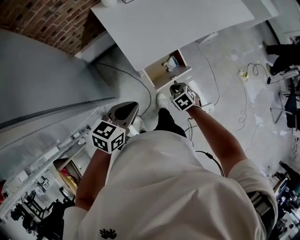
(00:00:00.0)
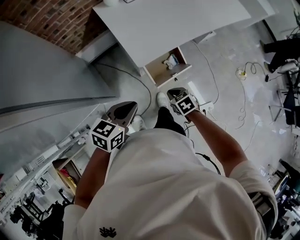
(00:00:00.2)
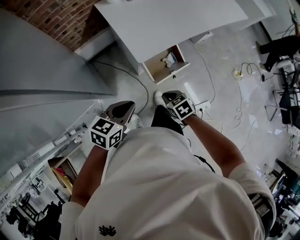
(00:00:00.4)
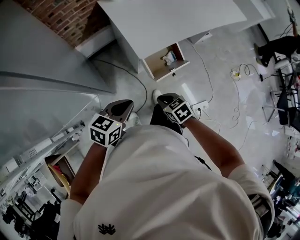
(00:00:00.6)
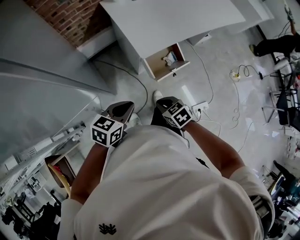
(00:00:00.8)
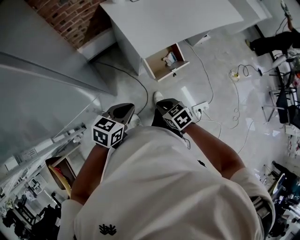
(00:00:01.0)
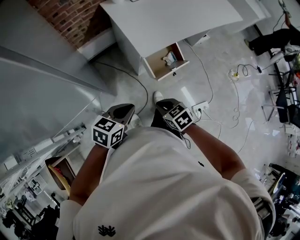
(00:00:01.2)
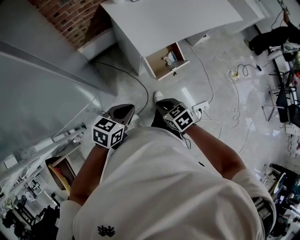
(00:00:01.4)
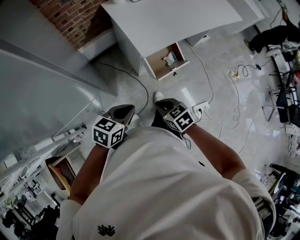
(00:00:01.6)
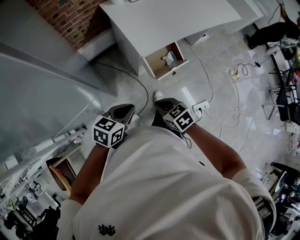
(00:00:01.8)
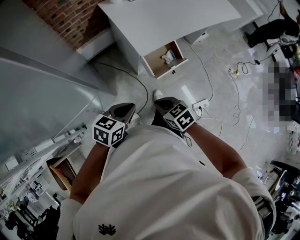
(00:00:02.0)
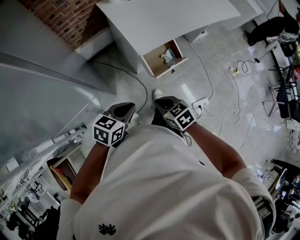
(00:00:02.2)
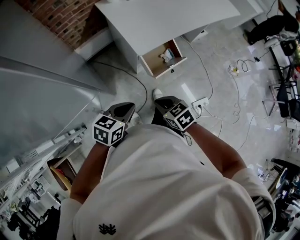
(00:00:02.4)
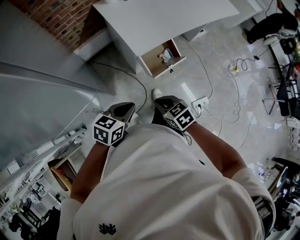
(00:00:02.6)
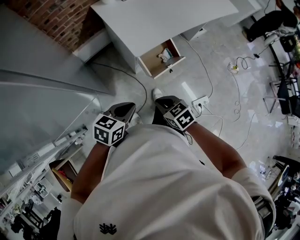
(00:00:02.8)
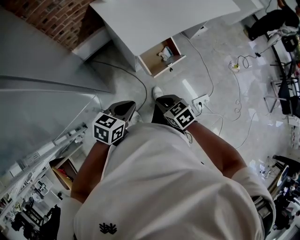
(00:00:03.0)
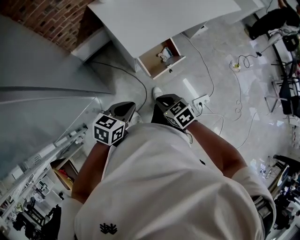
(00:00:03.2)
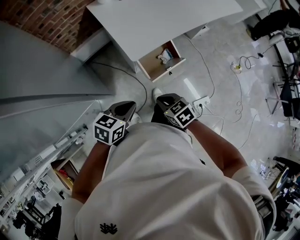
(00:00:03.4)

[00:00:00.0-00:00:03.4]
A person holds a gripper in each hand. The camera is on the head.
00:00:00.0 to 00:00:01.6: The right gripper goes about 30 cm backward, to the left and upward, while the left gripper is displaced backward and to the left by approximately 20 cm.
00:00:01.6 to 00:00:03.4: Both grippers move forward and to the right, some 10 cm.

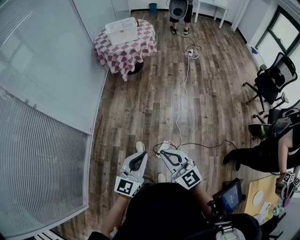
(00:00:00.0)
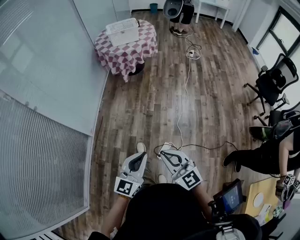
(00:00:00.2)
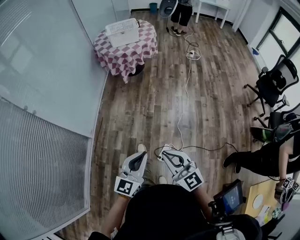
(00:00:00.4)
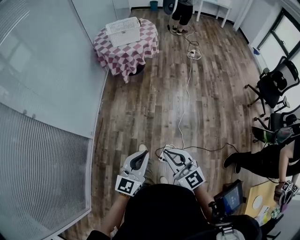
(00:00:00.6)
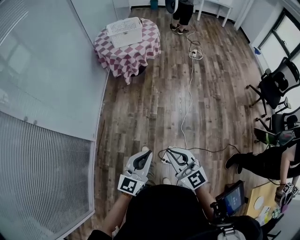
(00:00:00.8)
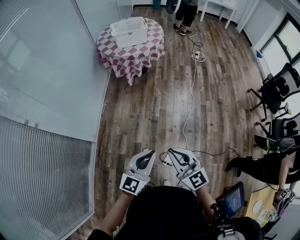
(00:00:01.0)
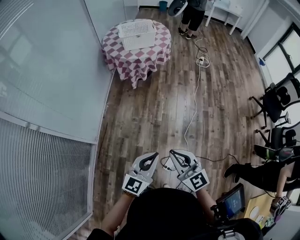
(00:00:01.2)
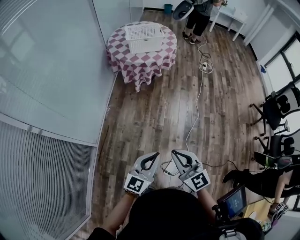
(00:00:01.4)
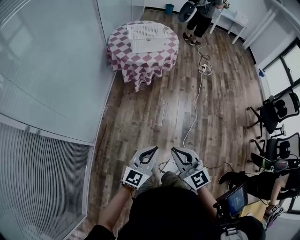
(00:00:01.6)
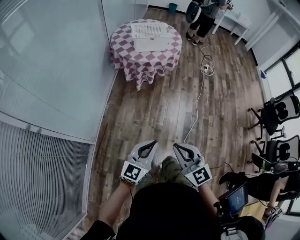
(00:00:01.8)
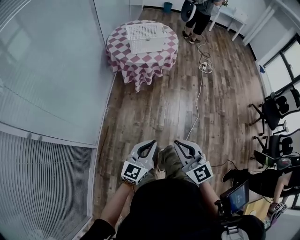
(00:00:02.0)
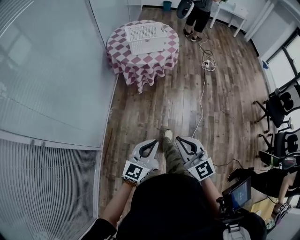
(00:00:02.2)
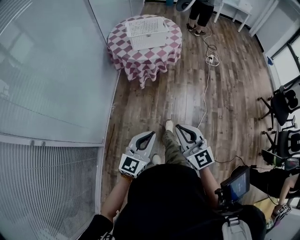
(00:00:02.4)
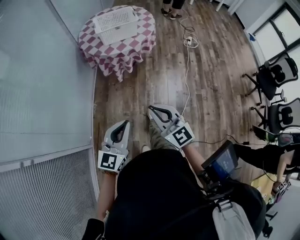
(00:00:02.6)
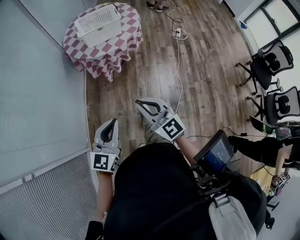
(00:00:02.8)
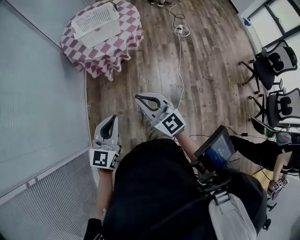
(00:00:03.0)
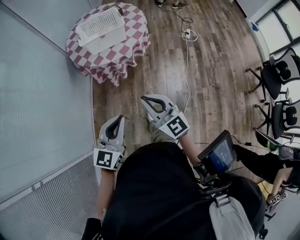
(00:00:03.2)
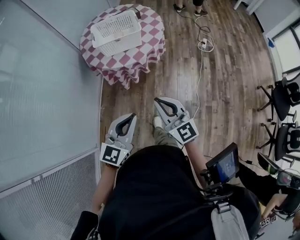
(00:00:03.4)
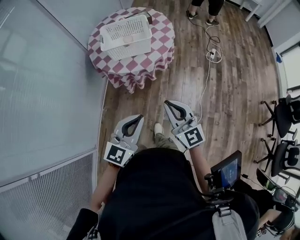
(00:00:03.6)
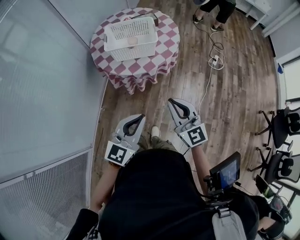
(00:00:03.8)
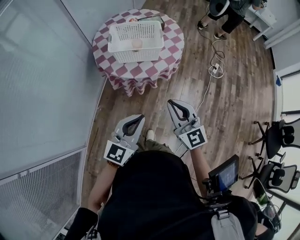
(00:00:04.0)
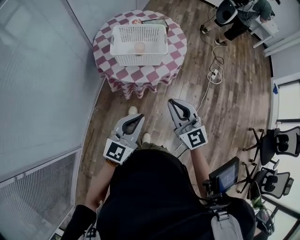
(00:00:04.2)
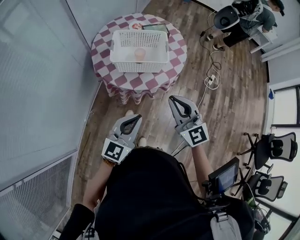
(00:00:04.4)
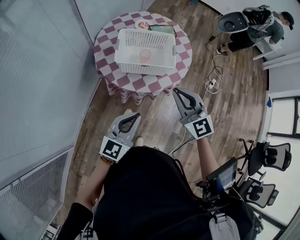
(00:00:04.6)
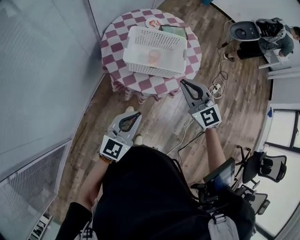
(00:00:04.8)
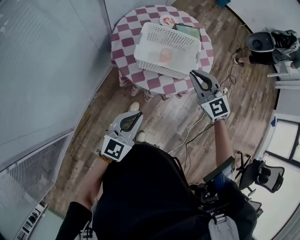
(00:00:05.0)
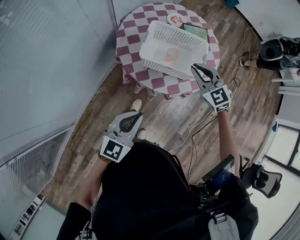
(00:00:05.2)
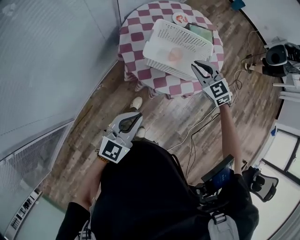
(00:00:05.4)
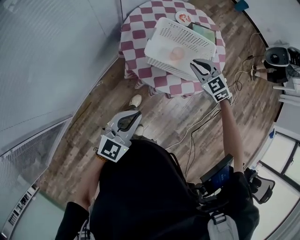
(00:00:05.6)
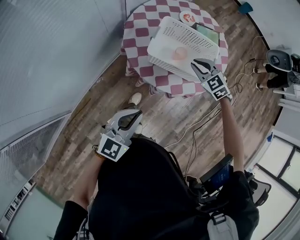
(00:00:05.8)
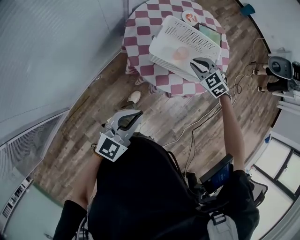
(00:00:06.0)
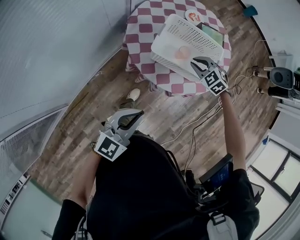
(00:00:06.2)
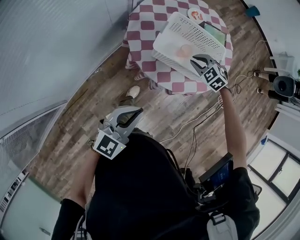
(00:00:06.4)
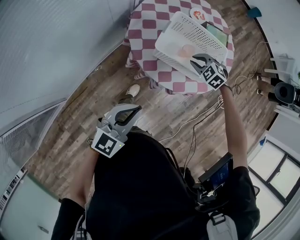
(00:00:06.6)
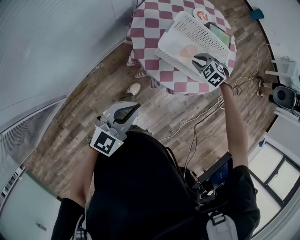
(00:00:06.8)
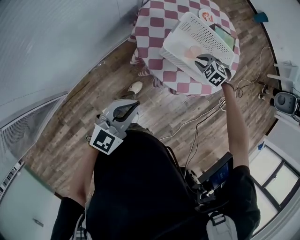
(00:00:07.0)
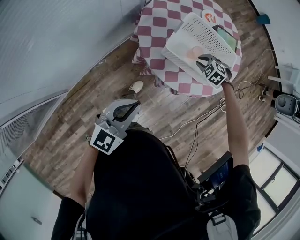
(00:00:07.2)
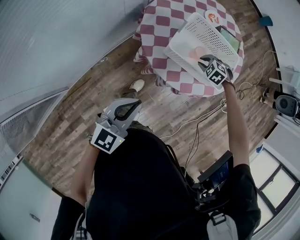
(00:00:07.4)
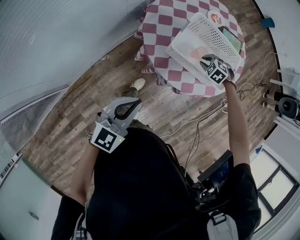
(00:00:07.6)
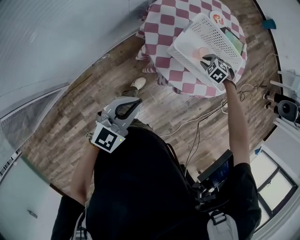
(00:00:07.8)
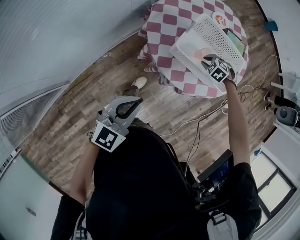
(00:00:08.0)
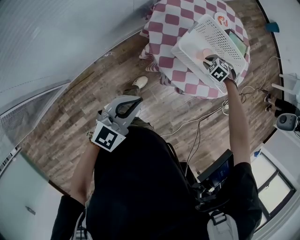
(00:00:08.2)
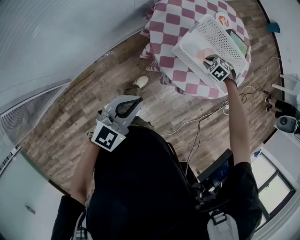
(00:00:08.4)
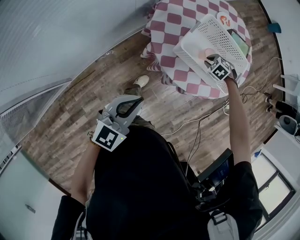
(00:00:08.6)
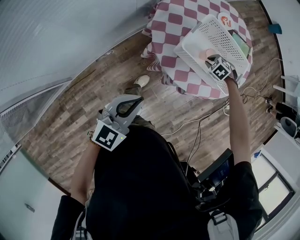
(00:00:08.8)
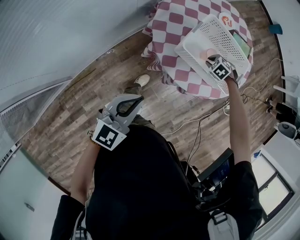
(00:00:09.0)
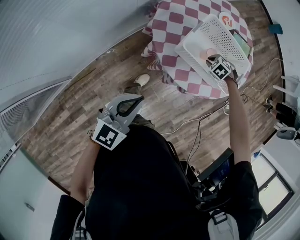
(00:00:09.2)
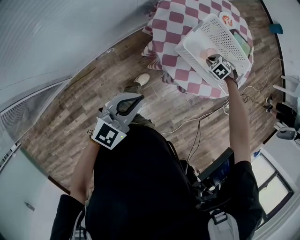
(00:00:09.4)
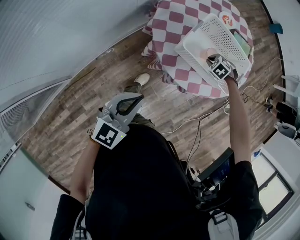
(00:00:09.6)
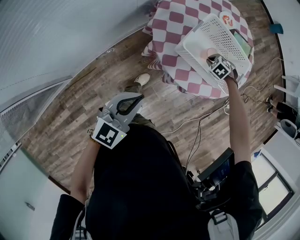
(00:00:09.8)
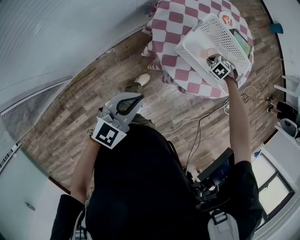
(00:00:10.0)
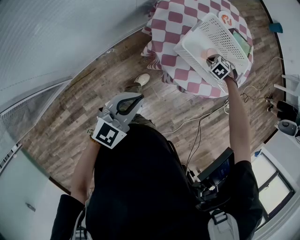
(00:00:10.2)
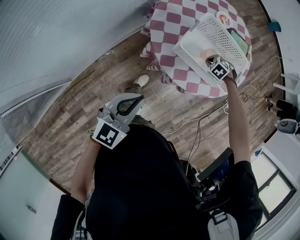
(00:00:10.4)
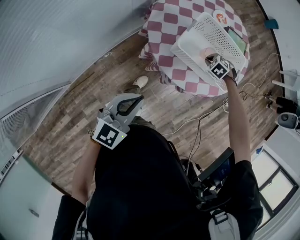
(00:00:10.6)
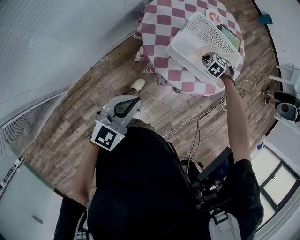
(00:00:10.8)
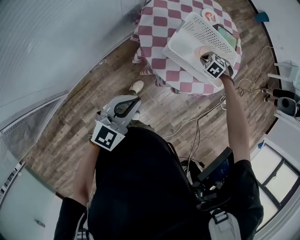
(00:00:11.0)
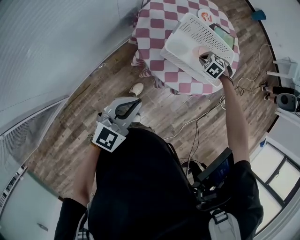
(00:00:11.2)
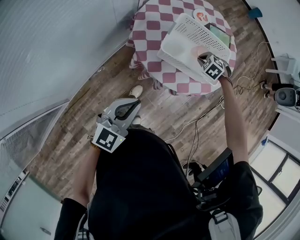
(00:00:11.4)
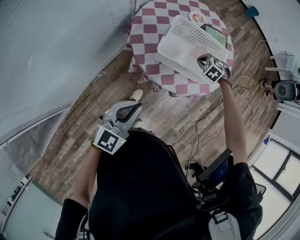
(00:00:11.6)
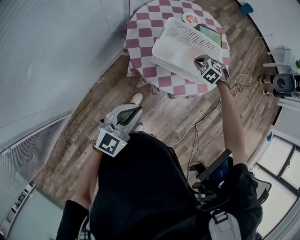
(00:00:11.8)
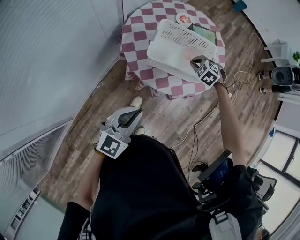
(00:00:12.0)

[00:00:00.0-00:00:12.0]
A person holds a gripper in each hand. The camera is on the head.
00:00:00.0 to 00:00:01.6: Both grippers travel together forward and to the left, about 35 cm.
00:00:01.6 to 00:00:03.0: Both grippers move forward, some 30 cm.
00:00:03.0 to 00:00:04.4: The two grippers go about 35 cm forward.
00:00:04.4 to 00:00:06.0: The left gripper heads forward and to the left, covering about 15 cm. Meanwhile the right gripper goes some 35 cm forward and downward, and angles its fingers downward, by some 40 degrees.
00:00:06.0 to 00:00:07.6: The left gripper ends up some 5 cm from where it was, while the right gripper travels downward by some 15 cm, and turns by about 30 degrees.
00:00:07.6 to 00:00:09.0: The grippers move only a little.
00:00:09.0 to 00:00:10.4: The two grippers keep their place.
00:00:10.4 to 00:00:12.0: The left gripper shifts by about 5 cm; the right gripper goes some 15 cm upward.

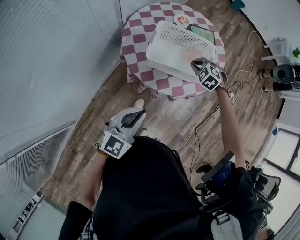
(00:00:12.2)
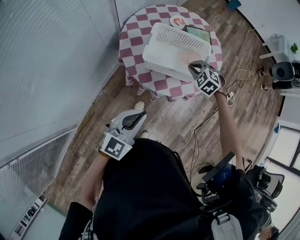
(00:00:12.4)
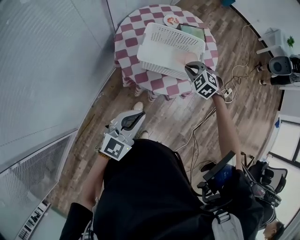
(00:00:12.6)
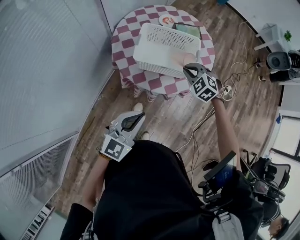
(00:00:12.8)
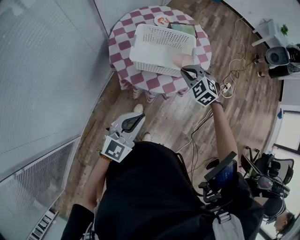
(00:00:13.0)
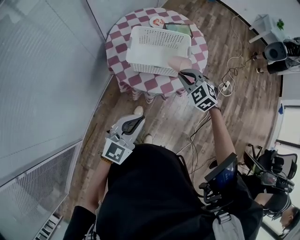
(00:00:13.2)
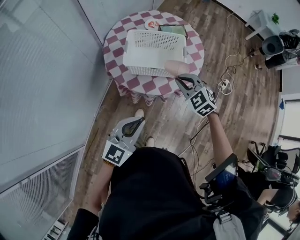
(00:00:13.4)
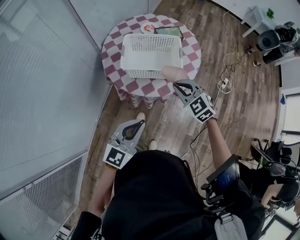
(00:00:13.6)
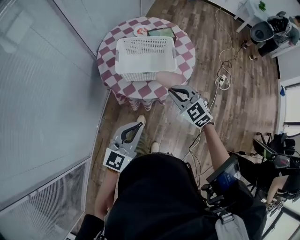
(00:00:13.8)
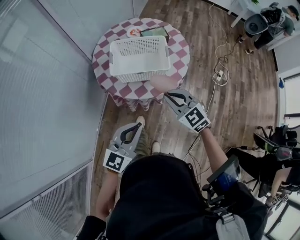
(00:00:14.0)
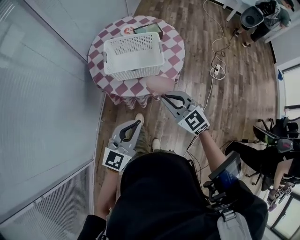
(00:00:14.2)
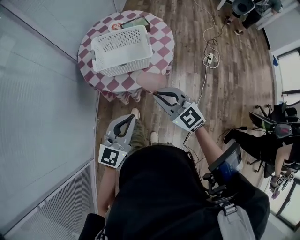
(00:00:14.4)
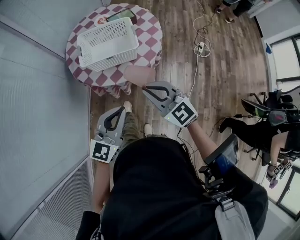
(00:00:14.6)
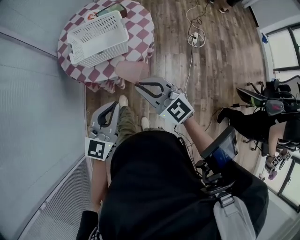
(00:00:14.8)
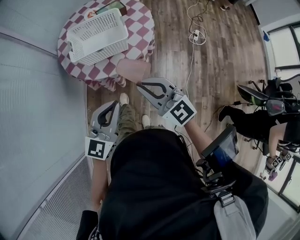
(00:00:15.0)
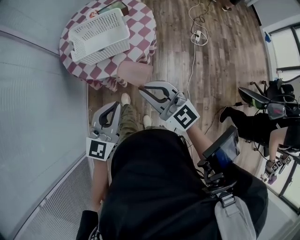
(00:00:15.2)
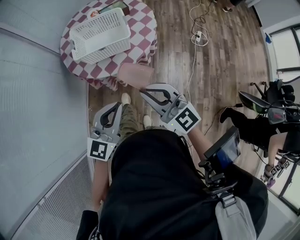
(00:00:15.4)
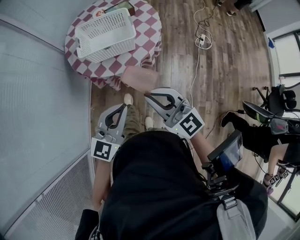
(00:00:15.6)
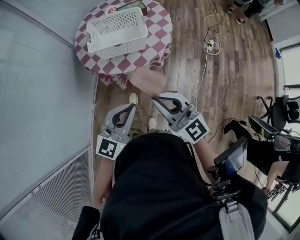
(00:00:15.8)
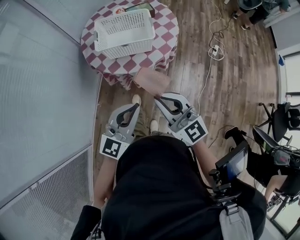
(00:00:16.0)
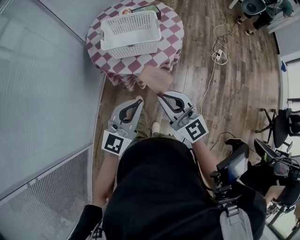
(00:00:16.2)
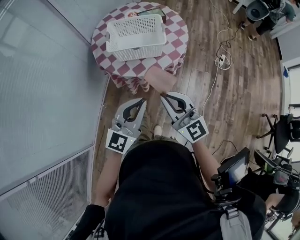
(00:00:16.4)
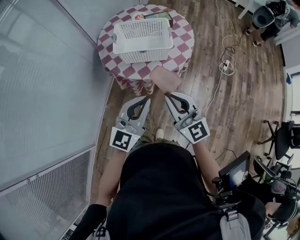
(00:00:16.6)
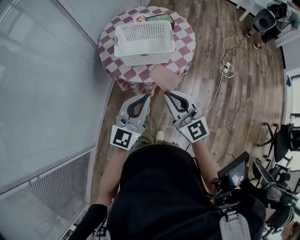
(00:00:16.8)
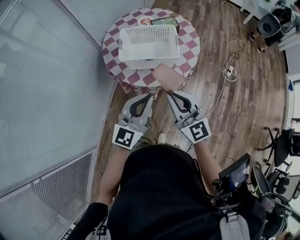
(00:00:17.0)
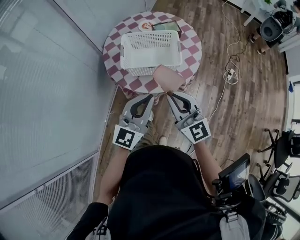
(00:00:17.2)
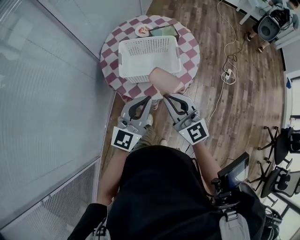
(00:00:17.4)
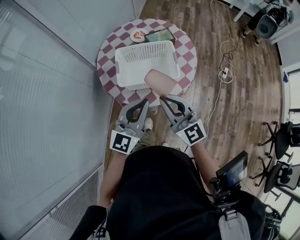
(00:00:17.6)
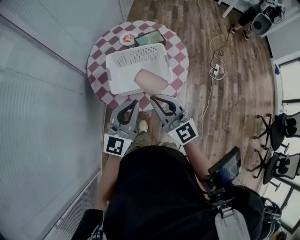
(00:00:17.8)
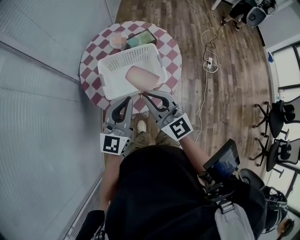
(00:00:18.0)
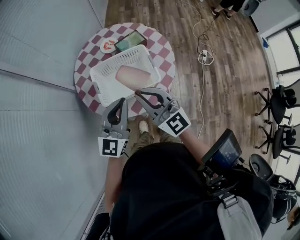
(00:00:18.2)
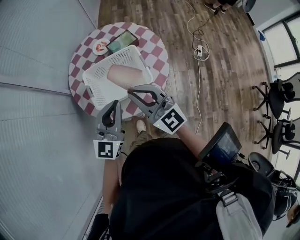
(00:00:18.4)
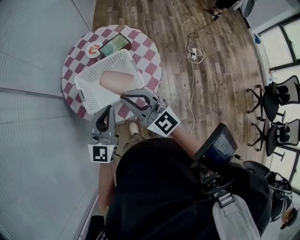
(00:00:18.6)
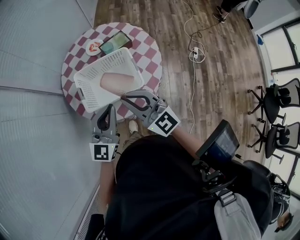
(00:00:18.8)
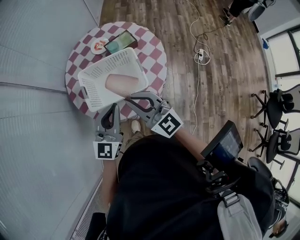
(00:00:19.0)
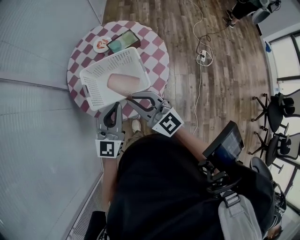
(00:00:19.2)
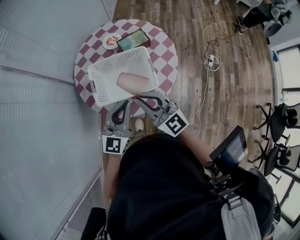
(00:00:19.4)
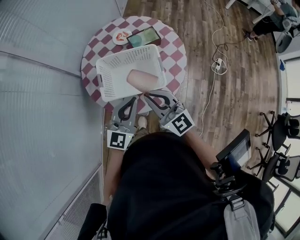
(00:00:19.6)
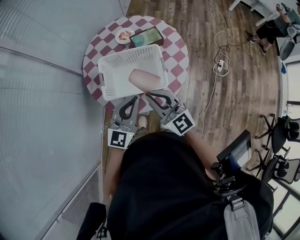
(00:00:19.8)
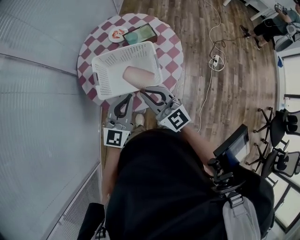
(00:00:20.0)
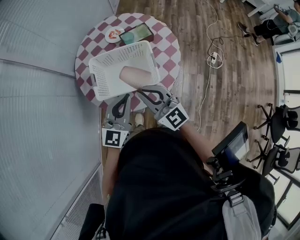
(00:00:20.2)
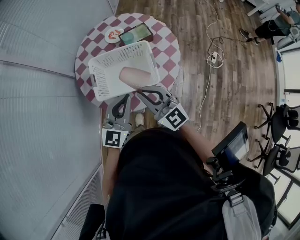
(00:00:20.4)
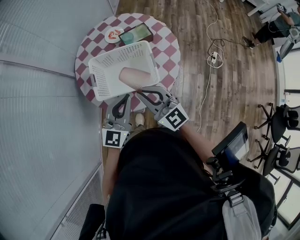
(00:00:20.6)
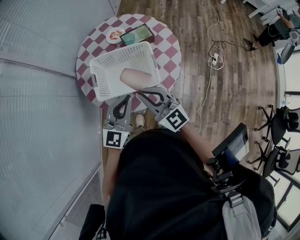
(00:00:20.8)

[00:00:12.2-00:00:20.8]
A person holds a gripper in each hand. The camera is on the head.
00:00:12.2 to 00:00:13.6: The left gripper moves to the right and backward, some 10 cm. Meanwhile the right gripper heads backward and upward, covering some 20 cm, and changes its angle by some 30 degrees.
00:00:13.6 to 00:00:15.0: The right gripper shifts roughly 20 cm backward and upward, and rotates approximately 30 degrees; the left gripper shifts some 10 cm to the right.
00:00:16.6 to 00:00:18.0: Both grippers travel together forward, approximately 25 cm.
00:00:18.0 to 00:00:19.4: The right gripper shifts by roughly 5 cm. The left gripper goes roughly 10 cm to the right and downward.
00:00:19.4 to 00:00:20.8: The grippers stay close to where they were, moving slightly.
